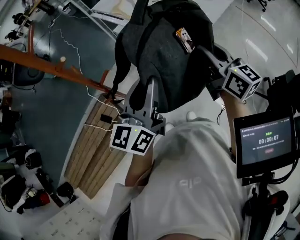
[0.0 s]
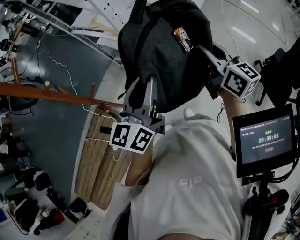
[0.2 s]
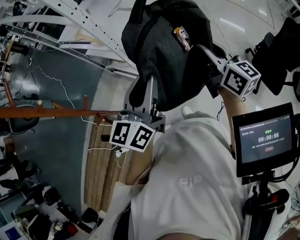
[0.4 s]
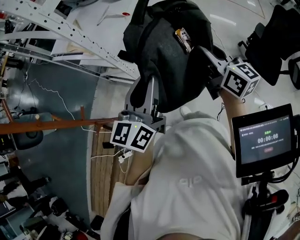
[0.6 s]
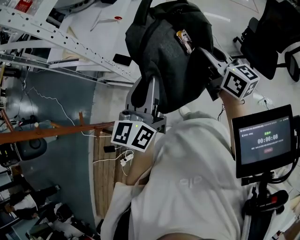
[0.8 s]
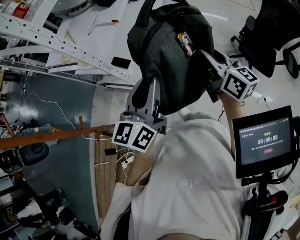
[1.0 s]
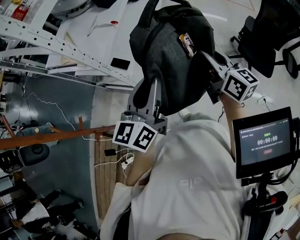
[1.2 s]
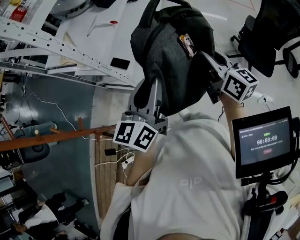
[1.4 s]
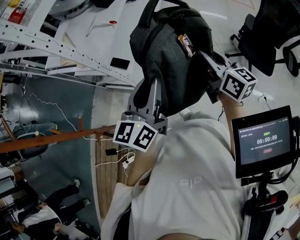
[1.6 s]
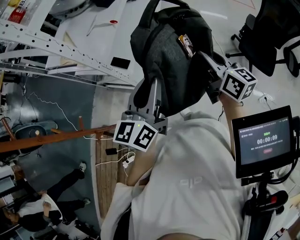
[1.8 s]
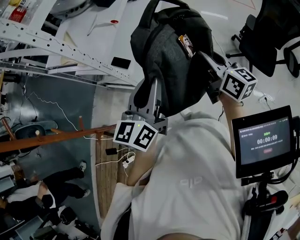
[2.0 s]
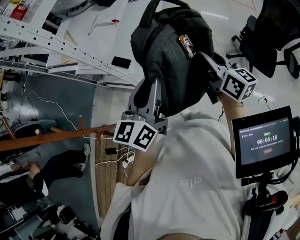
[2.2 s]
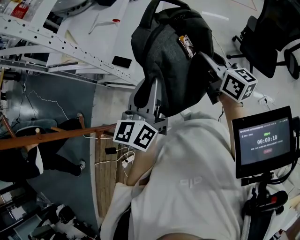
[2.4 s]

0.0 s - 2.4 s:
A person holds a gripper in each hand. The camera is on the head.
0.0 s - 1.2 s: The left gripper shifts by approximately 15 cm, and rotates approximately 30 degrees, while the right gripper changes place by roughly 20 cm, and changes its angle by approximately 30 degrees.
1.2 s - 2.4 s: Both grippers stay put.

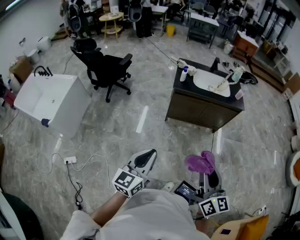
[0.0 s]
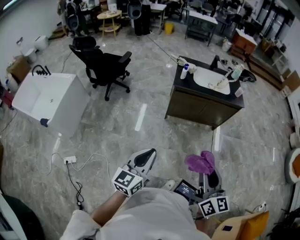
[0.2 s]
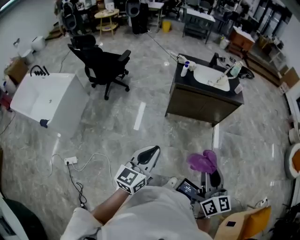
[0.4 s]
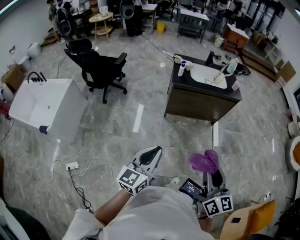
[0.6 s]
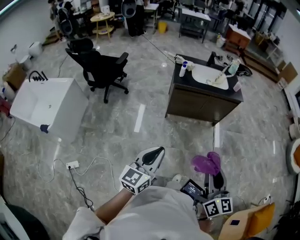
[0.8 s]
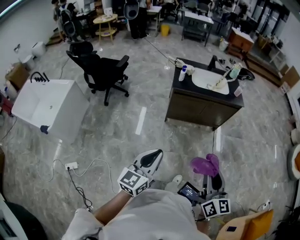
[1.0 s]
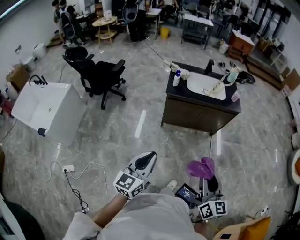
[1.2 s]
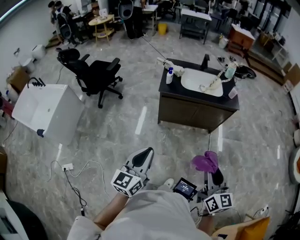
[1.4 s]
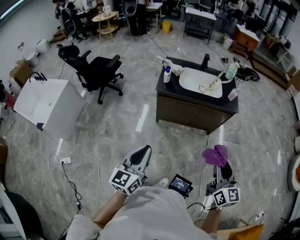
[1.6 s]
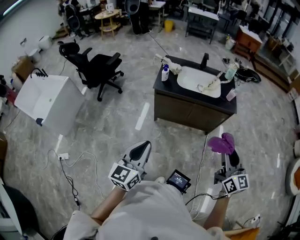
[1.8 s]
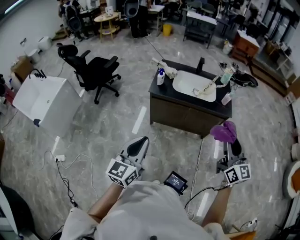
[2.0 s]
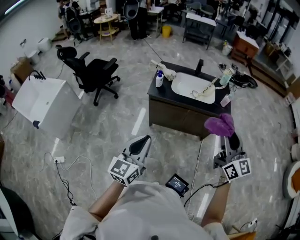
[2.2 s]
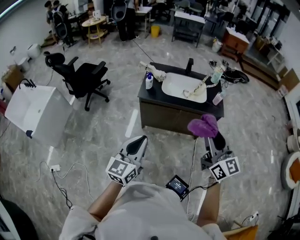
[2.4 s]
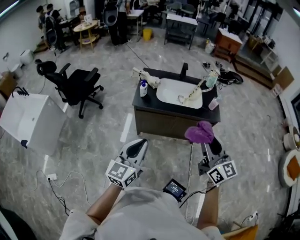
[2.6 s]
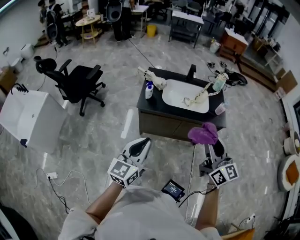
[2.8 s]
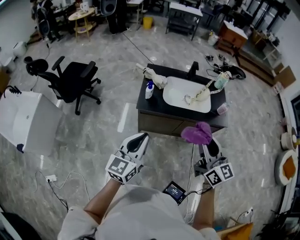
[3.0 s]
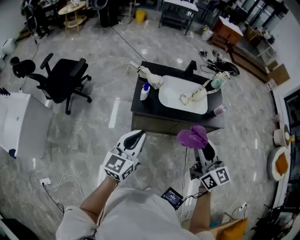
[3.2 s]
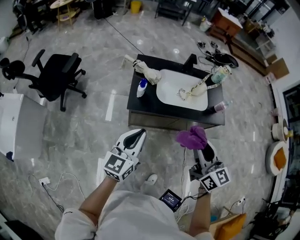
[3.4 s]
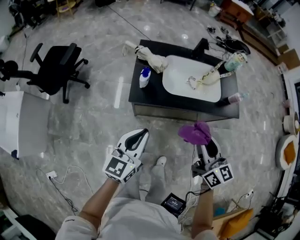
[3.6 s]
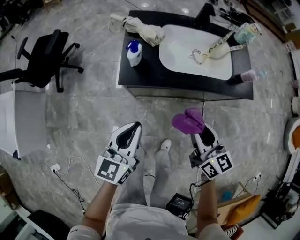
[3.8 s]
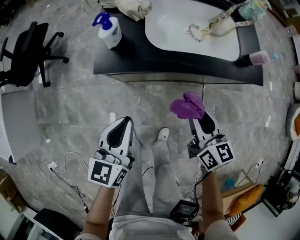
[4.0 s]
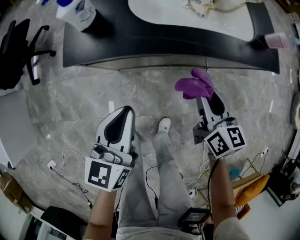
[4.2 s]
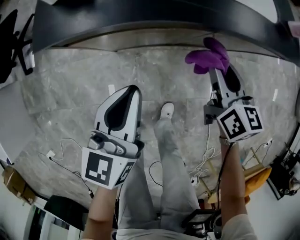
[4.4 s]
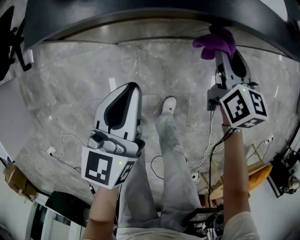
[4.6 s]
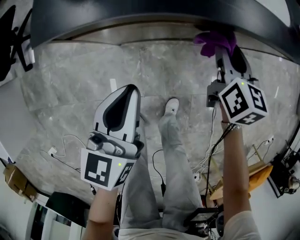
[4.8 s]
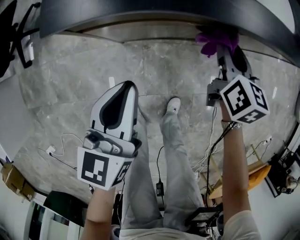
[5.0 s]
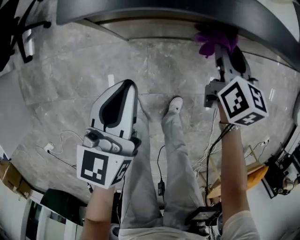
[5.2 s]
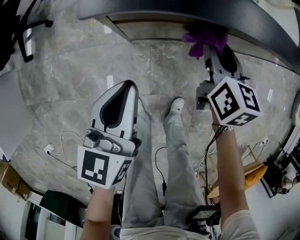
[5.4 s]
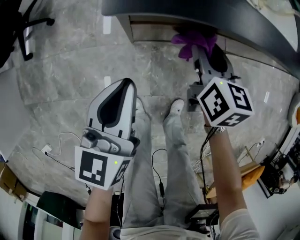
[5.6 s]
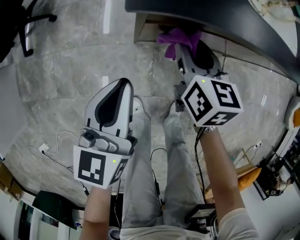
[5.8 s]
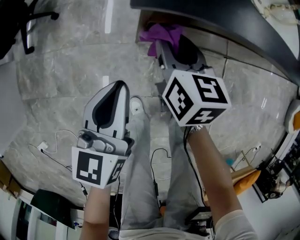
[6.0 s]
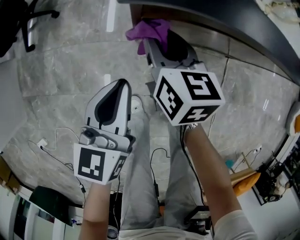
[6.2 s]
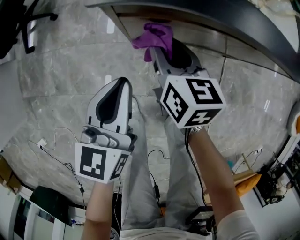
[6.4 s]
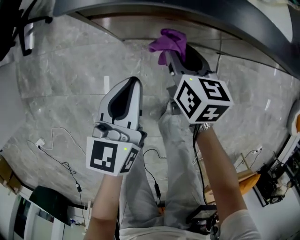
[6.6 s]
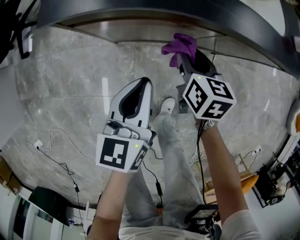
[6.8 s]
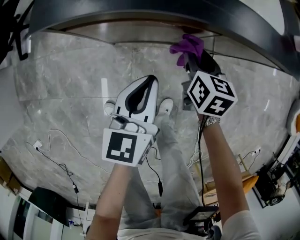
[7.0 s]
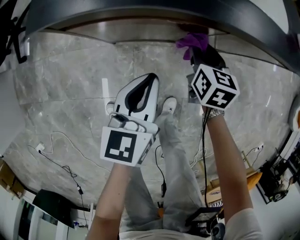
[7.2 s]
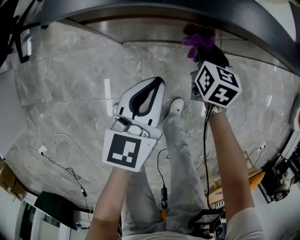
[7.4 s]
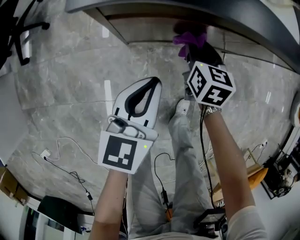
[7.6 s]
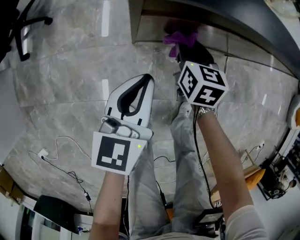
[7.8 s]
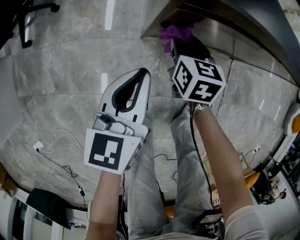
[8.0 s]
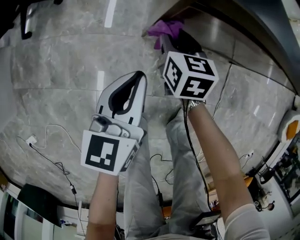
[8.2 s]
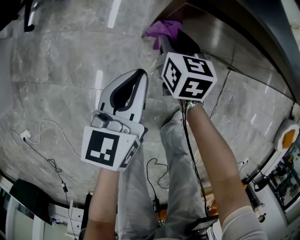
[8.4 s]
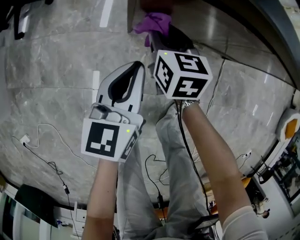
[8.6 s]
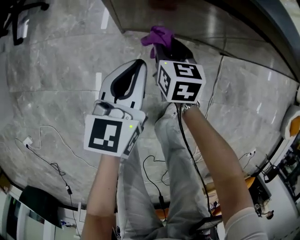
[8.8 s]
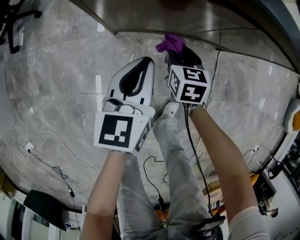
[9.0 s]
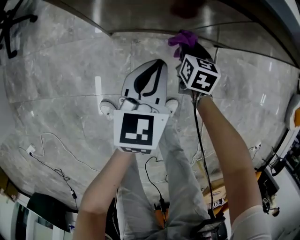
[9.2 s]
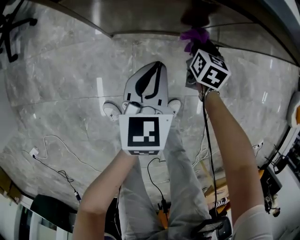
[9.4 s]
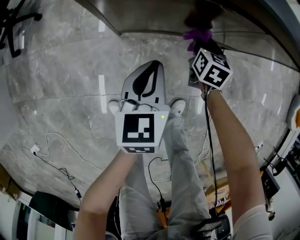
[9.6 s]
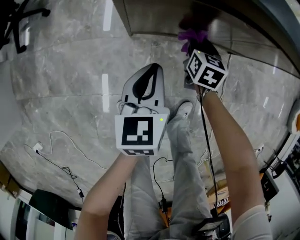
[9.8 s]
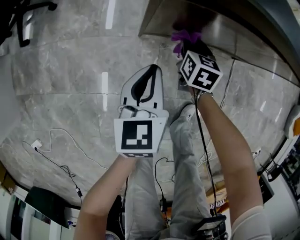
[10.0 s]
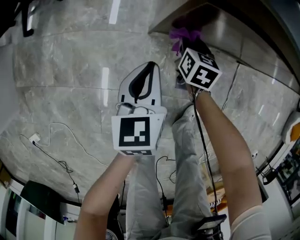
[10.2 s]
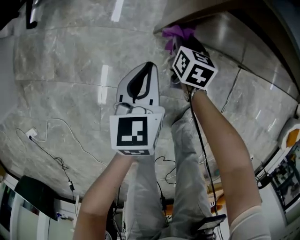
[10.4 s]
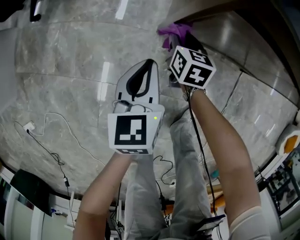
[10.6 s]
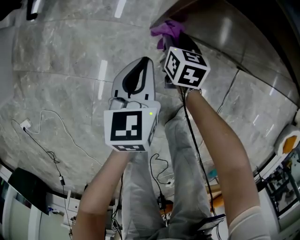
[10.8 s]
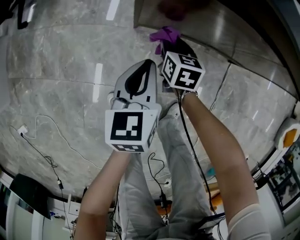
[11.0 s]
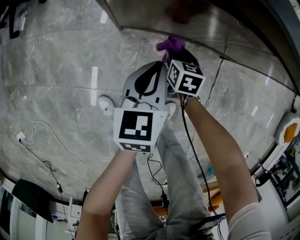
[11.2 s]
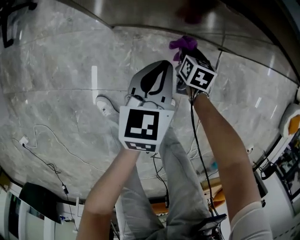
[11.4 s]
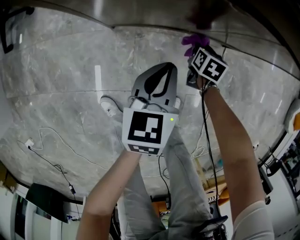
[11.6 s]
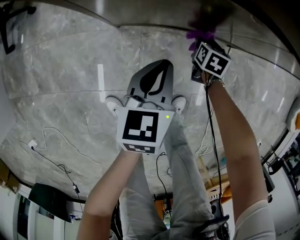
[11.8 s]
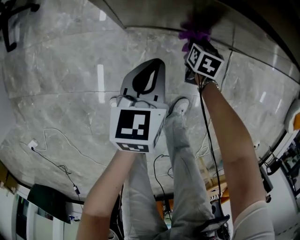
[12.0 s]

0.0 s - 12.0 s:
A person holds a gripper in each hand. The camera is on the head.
0.0 s - 1.6 s: The right gripper shifts about 25 cm to the right and forward; the left gripper is displaced forward and to the right by some 20 cm.
1.6 s - 3.0 s: The two grippers go approximately 30 cm forward.
3.0 s - 4.4 s: The two grippers go roughly 50 cm downward. The right gripper tilts its fingers about 30 degrees downward, while the left gripper changes its angle by some 20 degrees.
4.4 s - 6.0 s: The right gripper moves to the left, about 35 cm. The left gripper travels to the left by about 20 cm.
6.0 s - 7.6 s: The grippers both shift to the right and downward by approximately 15 cm.
7.6 s - 9.0 s: The left gripper moves downward, some 5 cm, and goes to the left and returns, about 15 cm each way, while the right gripper moves downward and backward, approximately 10 cm, and goes to the left and returns, approximately 20 cm each way.
9.0 s - 10.4 s: The grippers both shift to the left by approximately 20 cm.
10.4 s - 12.0 s: The right gripper moves about 25 cm.

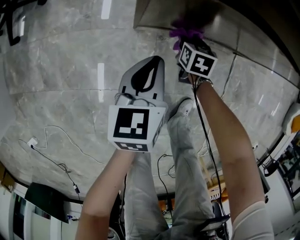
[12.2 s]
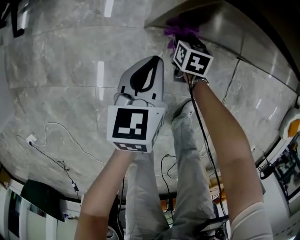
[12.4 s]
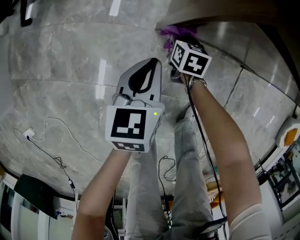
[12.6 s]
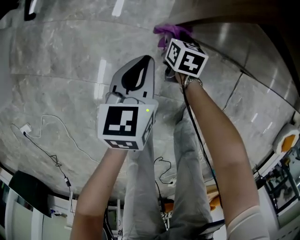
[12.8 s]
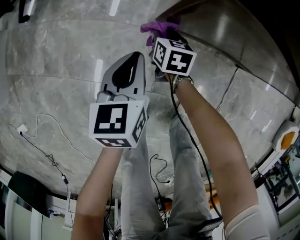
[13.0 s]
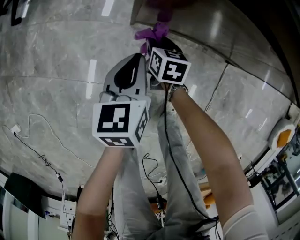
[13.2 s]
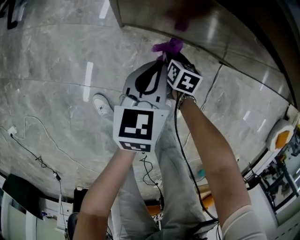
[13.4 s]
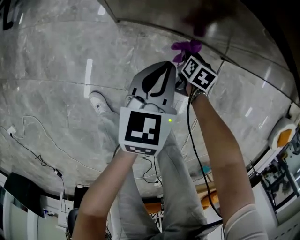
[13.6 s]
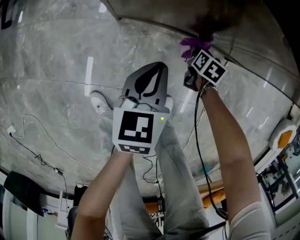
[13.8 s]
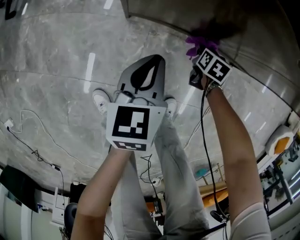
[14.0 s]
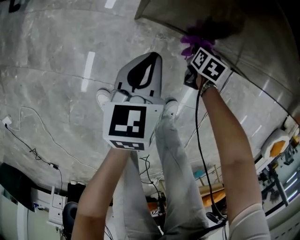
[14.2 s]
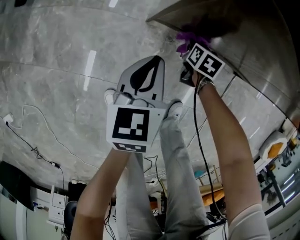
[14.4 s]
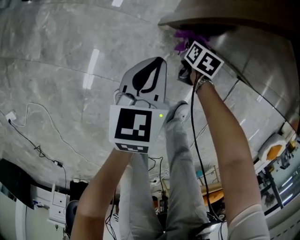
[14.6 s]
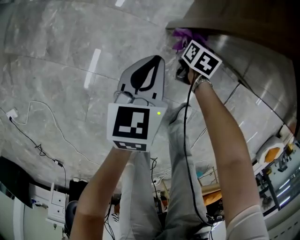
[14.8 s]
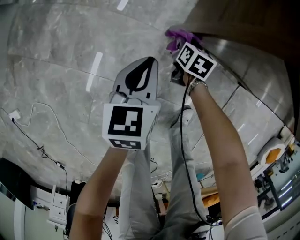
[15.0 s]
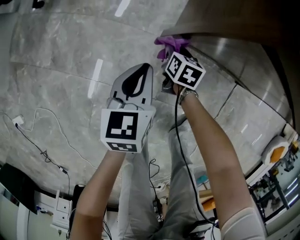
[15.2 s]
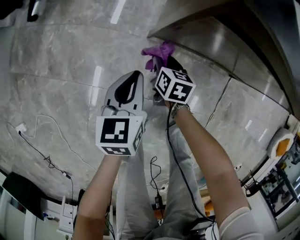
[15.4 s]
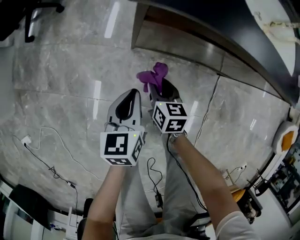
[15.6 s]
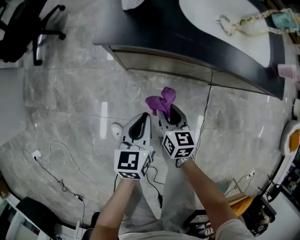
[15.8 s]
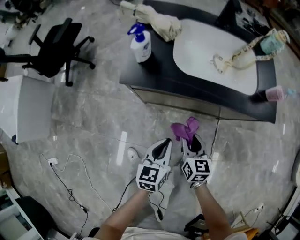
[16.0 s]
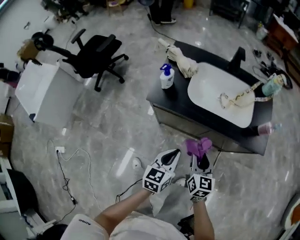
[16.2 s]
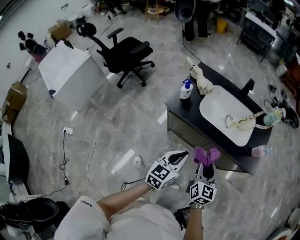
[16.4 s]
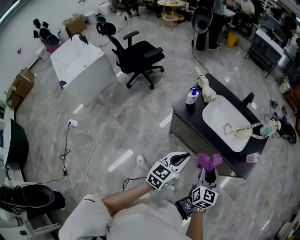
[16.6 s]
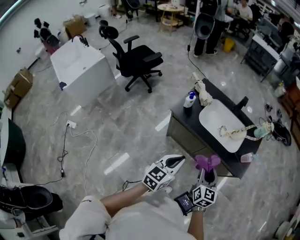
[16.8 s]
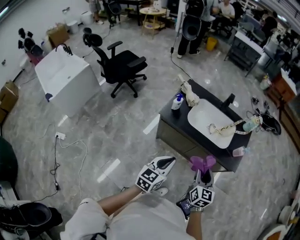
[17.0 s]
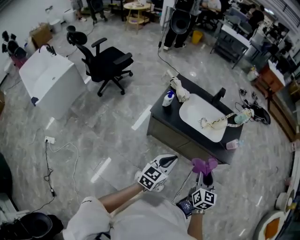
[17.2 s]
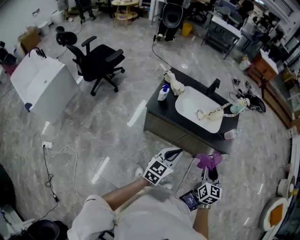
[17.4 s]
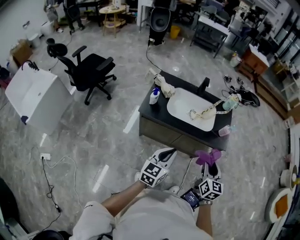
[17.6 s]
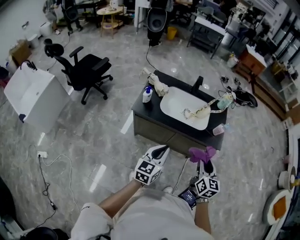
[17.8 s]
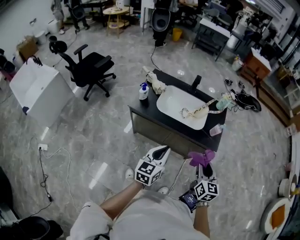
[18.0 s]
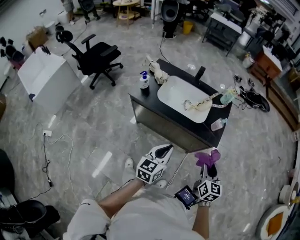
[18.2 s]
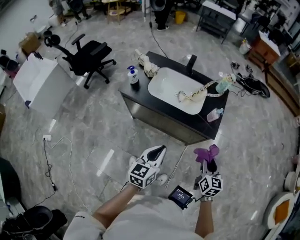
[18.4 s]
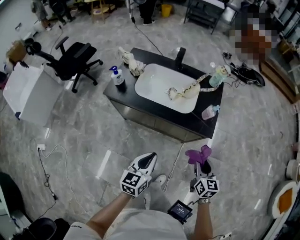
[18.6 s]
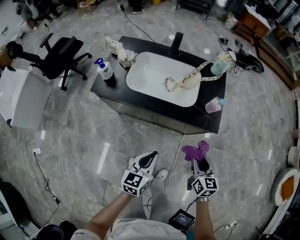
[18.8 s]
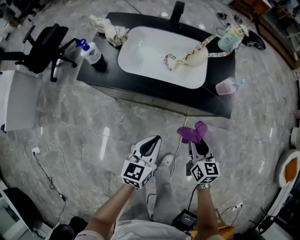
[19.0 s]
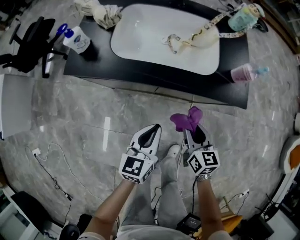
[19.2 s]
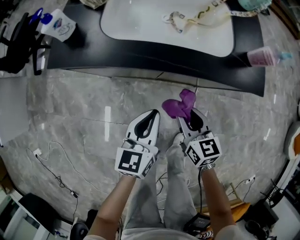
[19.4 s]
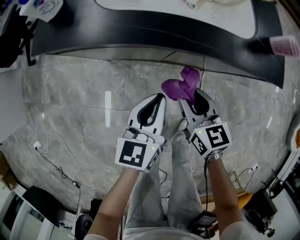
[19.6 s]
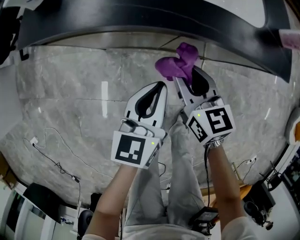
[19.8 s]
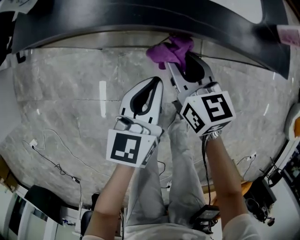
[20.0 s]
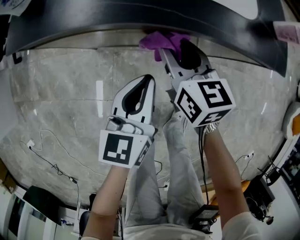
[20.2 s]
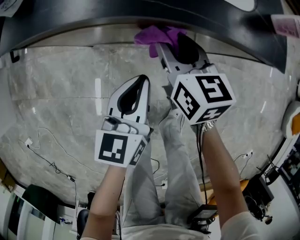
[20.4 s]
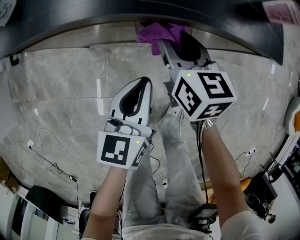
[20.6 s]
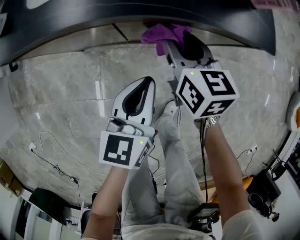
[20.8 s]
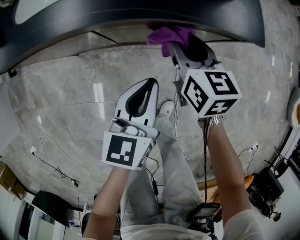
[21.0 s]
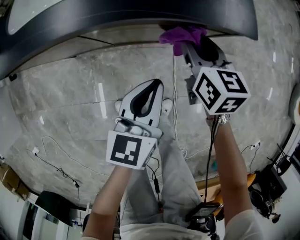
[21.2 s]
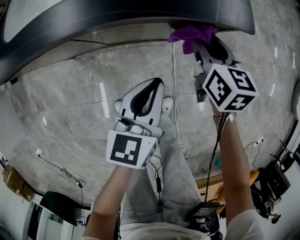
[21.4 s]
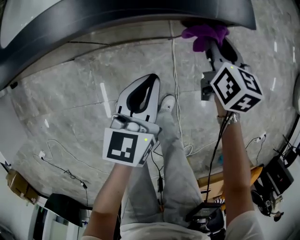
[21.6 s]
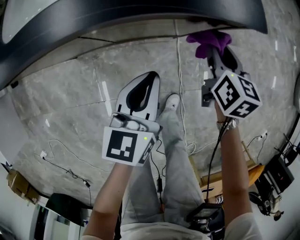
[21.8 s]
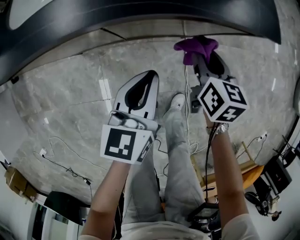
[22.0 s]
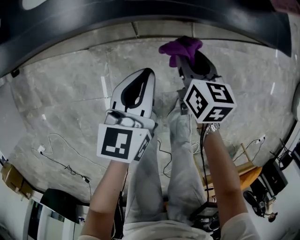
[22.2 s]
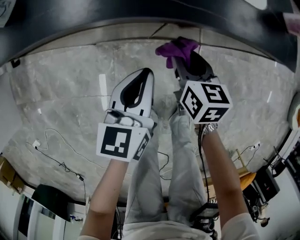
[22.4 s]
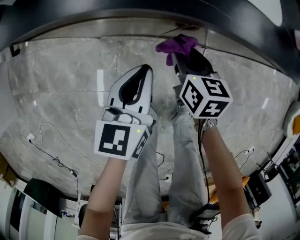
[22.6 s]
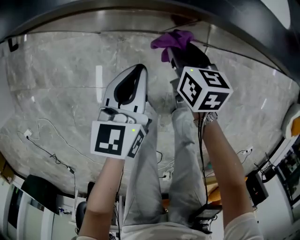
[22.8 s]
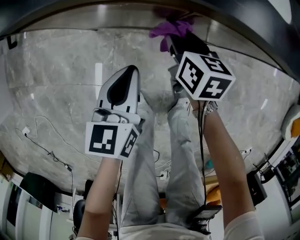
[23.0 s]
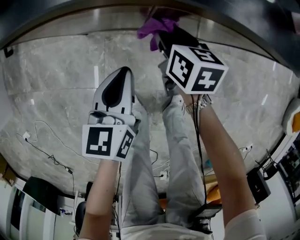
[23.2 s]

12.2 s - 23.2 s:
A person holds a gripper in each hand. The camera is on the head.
12.2 s - 13.8 s: The two grippers go approximately 15 cm to the right.
13.8 s - 15.4 s: The two grippers go roughly 25 cm to the left. The right gripper turns by about 20 degrees.
15.4 s - 17.0 s: The two grippers go roughly 70 cm upward and to the right. The right gripper tips its fingers upward by some 30 degrees, while the left gripper swivels approximately 20 degrees.
17.0 s - 18.4 s: Both grippers travel together to the right, some 25 cm.
18.4 s - 20.0 s: The right gripper is displaced downward, to the left and forward by approximately 50 cm. Meanwhile the left gripper goes some 35 cm downward and forward.
20.0 s - 21.6 s: The left gripper moves to the right, roughly 20 cm, while the right gripper moves to the right, about 35 cm, and rotates some 30 degrees.
21.6 s - 23.2 s: Both grippers move to the left, roughly 25 cm. The right gripper rotates roughly 30 degrees.
